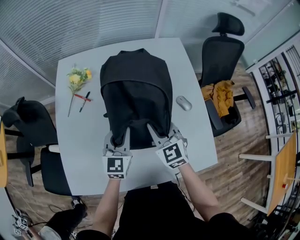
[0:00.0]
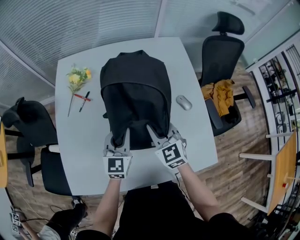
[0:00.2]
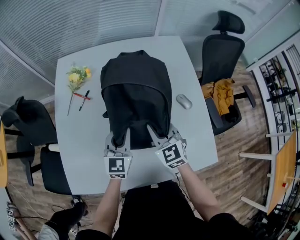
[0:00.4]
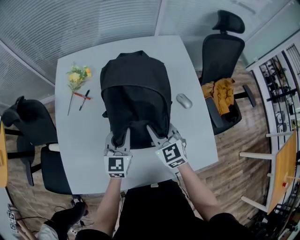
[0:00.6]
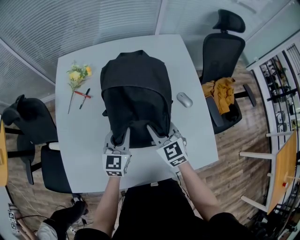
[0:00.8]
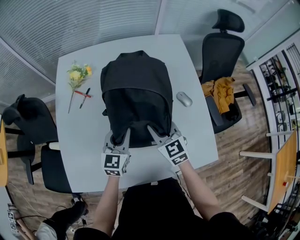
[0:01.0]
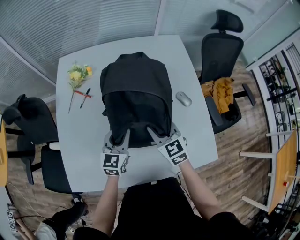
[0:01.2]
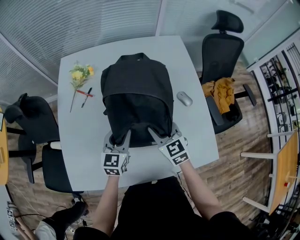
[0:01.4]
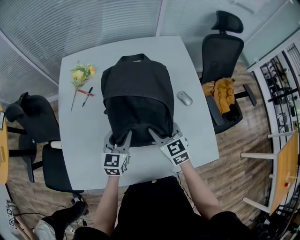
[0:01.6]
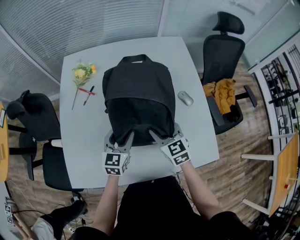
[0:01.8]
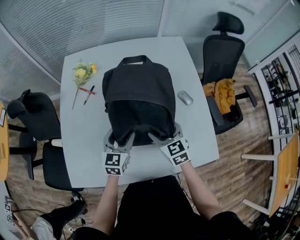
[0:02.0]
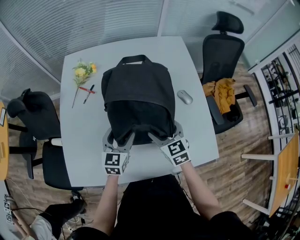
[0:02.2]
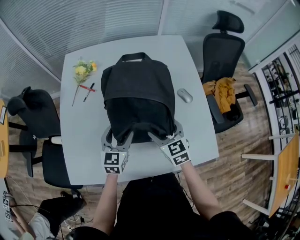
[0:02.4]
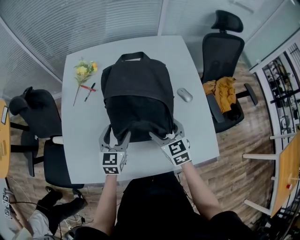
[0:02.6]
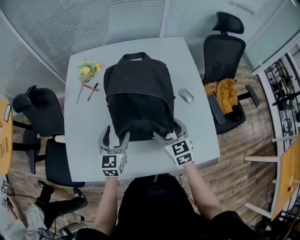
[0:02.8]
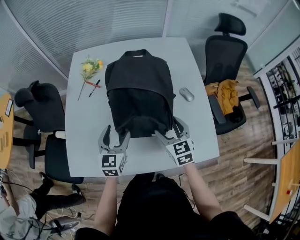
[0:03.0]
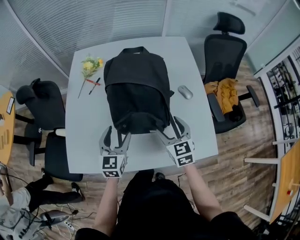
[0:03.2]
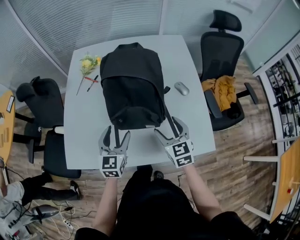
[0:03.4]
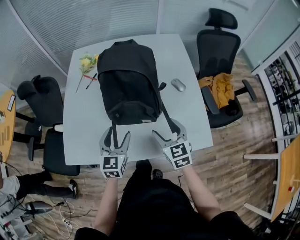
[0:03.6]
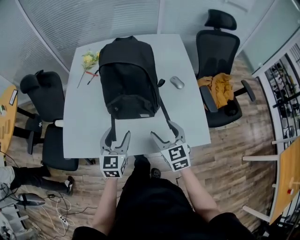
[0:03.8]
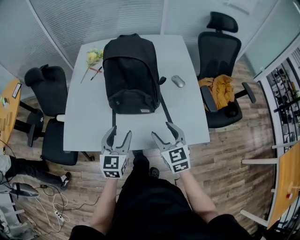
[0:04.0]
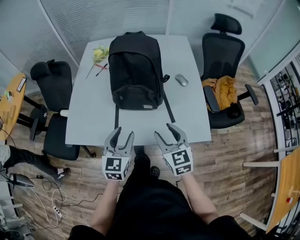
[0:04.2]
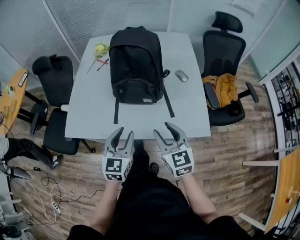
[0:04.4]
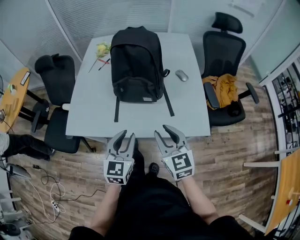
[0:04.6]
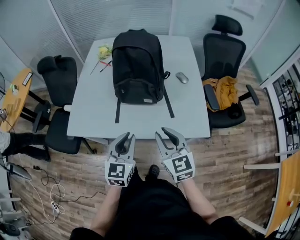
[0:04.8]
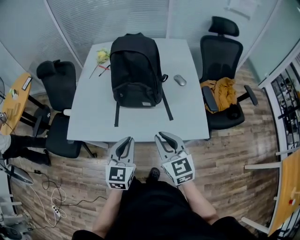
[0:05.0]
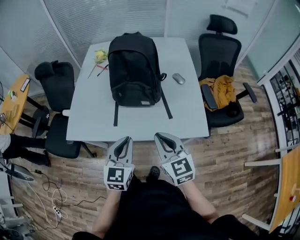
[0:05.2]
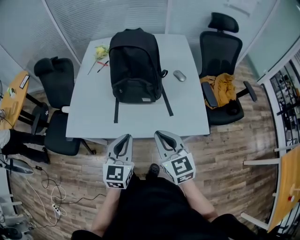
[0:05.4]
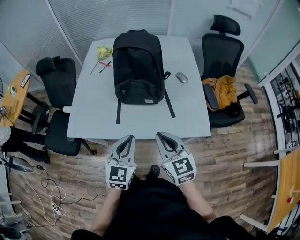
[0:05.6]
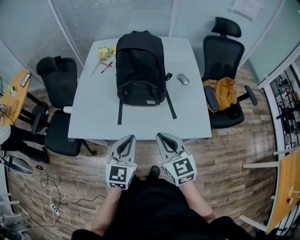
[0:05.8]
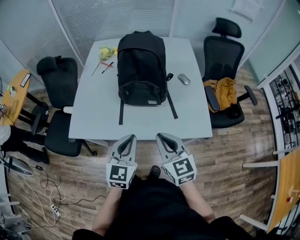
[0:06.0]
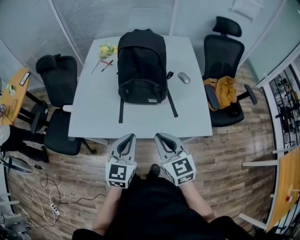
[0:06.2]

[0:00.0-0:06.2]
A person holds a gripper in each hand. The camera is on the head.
0:00.0 to 0:01.6: The right gripper ends up some 5 cm from where it was, and opens. The left gripper moves roughly 5 cm, and opens its fingers.
0:01.6 to 0:03.2: The two grippers go about 10 cm backward. The left gripper opens up; the right gripper opens up.
0:03.2 to 0:04.6: The grippers both shift backward by some 25 cm. The left gripper closes up. The right gripper closes its fingers.
0:04.6 to 0:06.2: The right gripper is displaced to the left by about 5 cm.

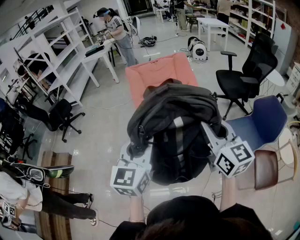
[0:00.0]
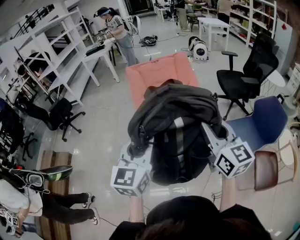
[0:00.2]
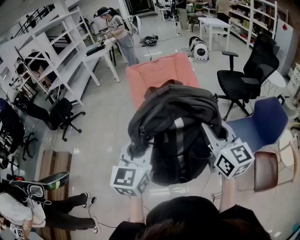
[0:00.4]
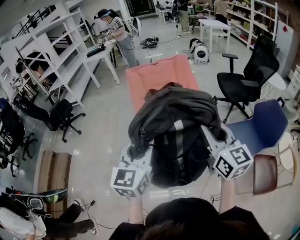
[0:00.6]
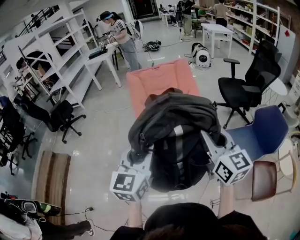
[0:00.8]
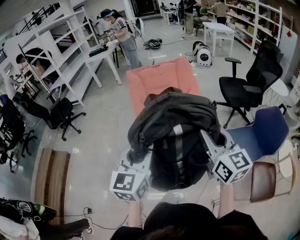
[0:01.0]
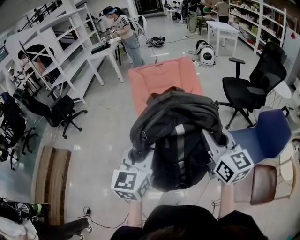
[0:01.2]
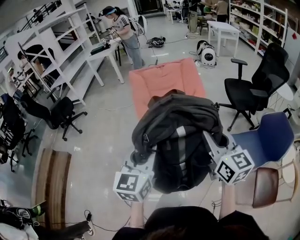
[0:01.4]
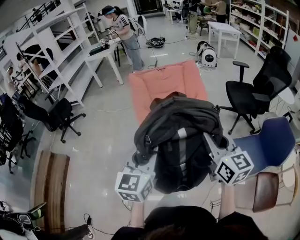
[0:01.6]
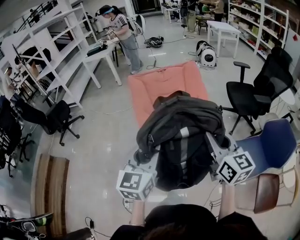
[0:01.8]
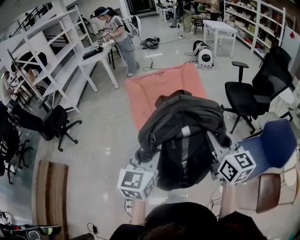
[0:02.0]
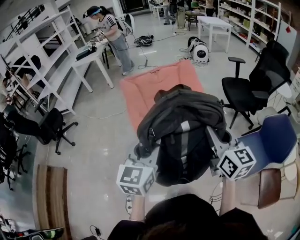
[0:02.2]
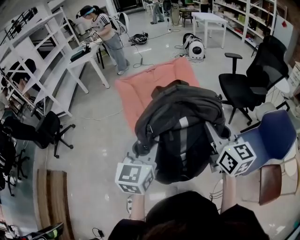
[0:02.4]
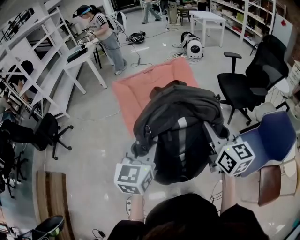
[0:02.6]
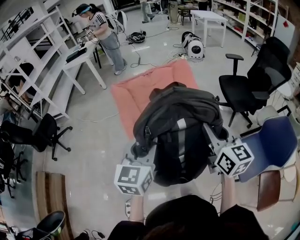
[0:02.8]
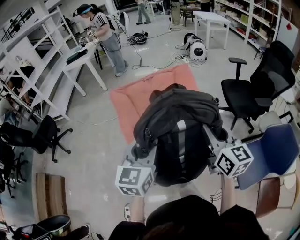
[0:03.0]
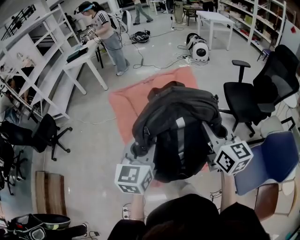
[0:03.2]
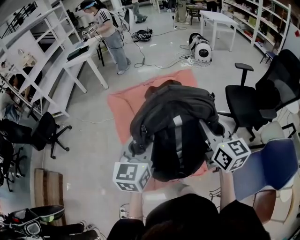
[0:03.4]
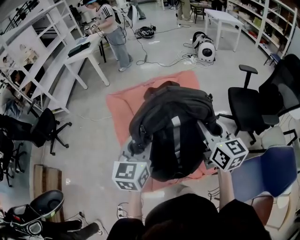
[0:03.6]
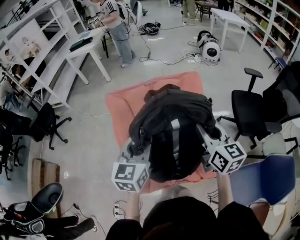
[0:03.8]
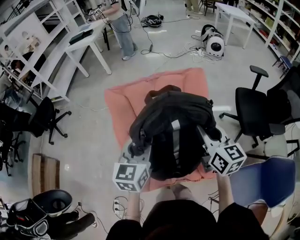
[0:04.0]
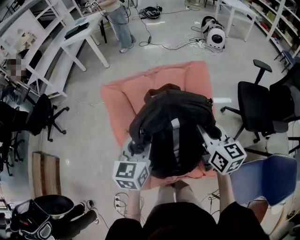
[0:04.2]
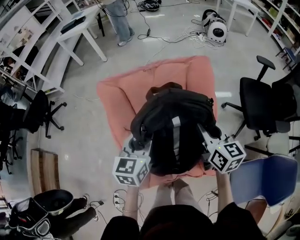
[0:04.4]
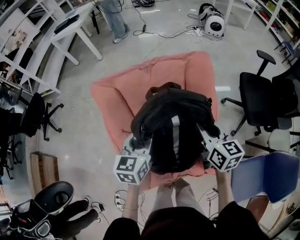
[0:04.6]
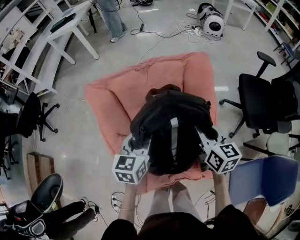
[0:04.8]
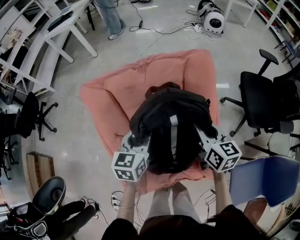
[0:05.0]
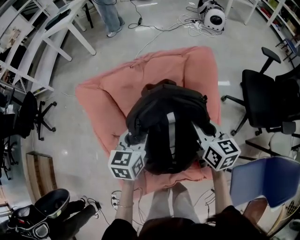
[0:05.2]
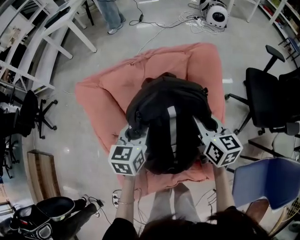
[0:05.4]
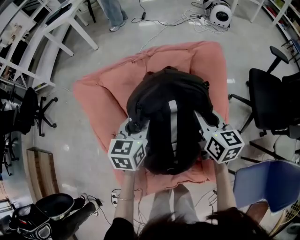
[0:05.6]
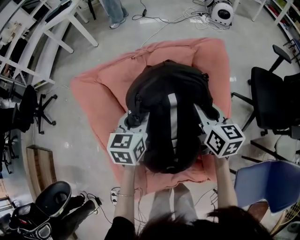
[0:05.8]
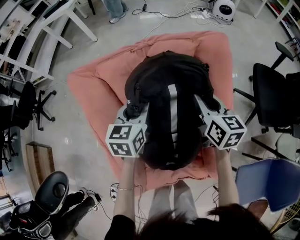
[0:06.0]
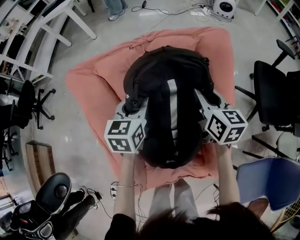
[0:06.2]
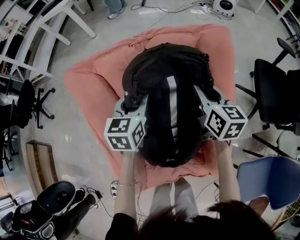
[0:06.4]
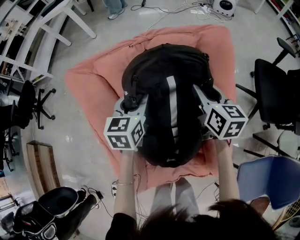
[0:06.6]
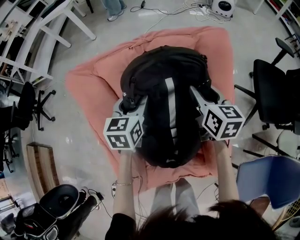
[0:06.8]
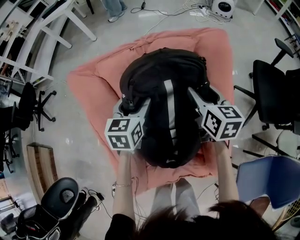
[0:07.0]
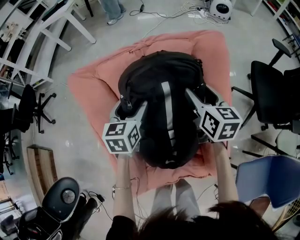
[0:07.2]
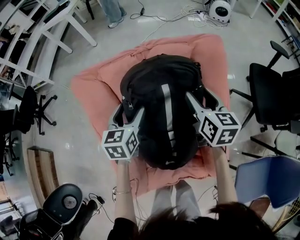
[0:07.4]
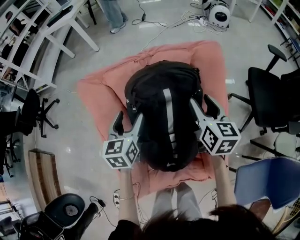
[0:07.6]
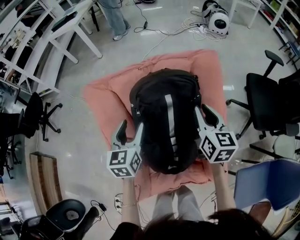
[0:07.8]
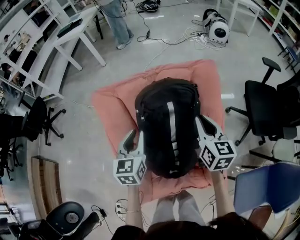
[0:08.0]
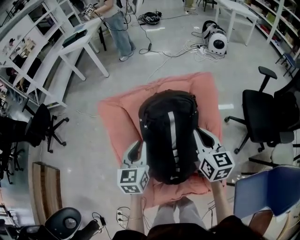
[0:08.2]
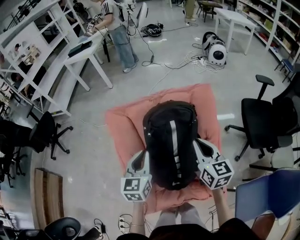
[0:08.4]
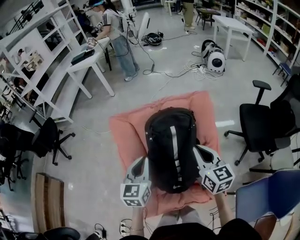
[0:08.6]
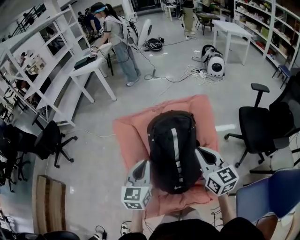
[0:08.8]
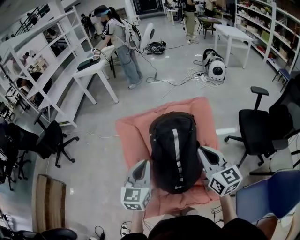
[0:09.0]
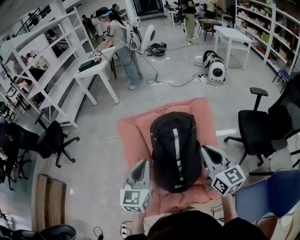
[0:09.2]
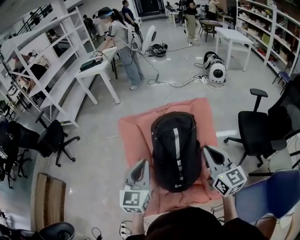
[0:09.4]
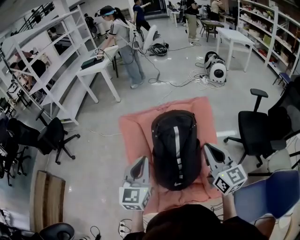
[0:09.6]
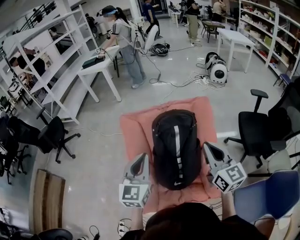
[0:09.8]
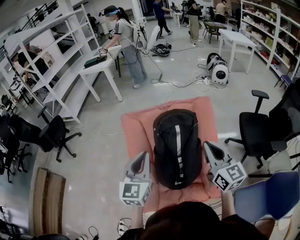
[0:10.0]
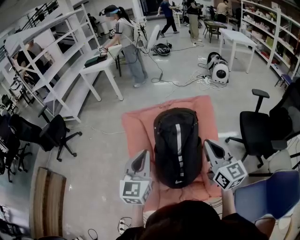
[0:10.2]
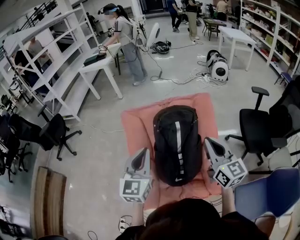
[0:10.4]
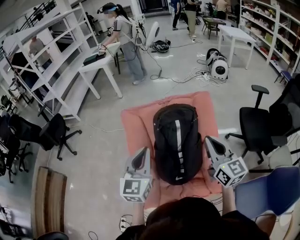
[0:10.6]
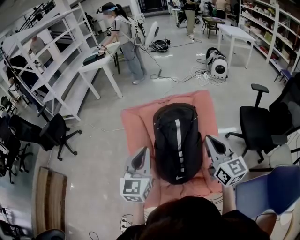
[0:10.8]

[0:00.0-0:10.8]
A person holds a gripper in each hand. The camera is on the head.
0:00.0 to 0:01.6: Both grippers travel together forward, about 15 cm.
0:01.6 to 0:03.0: Both grippers travel together forward, roughly 25 cm.
0:03.0 to 0:04.6: Both grippers move forward and downward, roughly 30 cm.
0:04.6 to 0:06.2: Both grippers travel together forward and downward, roughly 20 cm.
0:06.2 to 0:07.8: The left gripper moves backward, upward and to the left, about 10 cm, and opens. Meanwhile the right gripper travels upward and backward by about 10 cm, and opens, then closes once more.
0:07.8 to 0:09.2: Both grippers move upward and backward, approximately 25 cm. The right gripper swivels some 20 degrees. The left gripper closes up.
0:09.2 to 0:10.8: There are only small adjustments of the grippers.

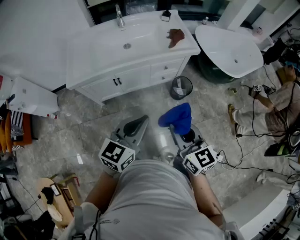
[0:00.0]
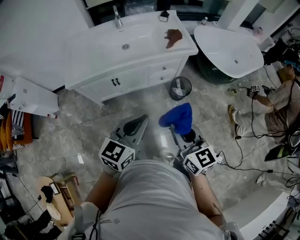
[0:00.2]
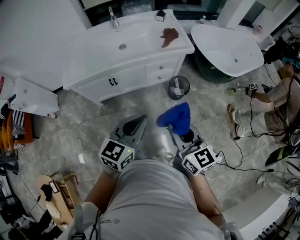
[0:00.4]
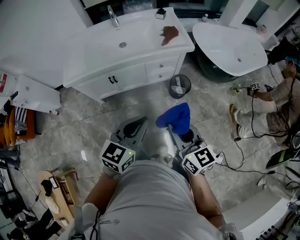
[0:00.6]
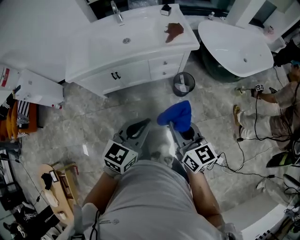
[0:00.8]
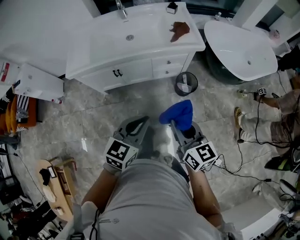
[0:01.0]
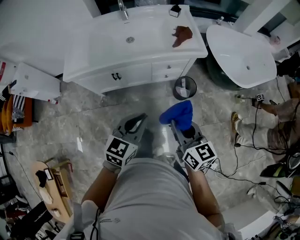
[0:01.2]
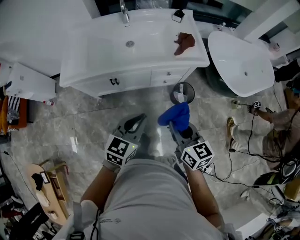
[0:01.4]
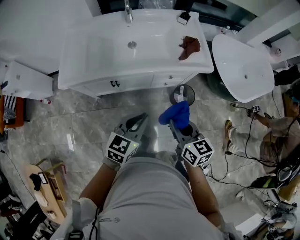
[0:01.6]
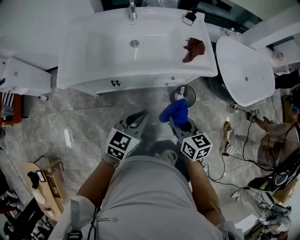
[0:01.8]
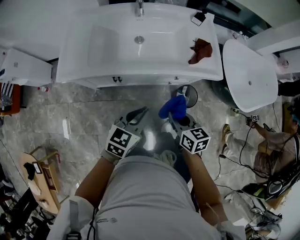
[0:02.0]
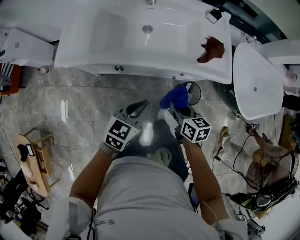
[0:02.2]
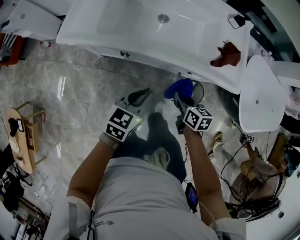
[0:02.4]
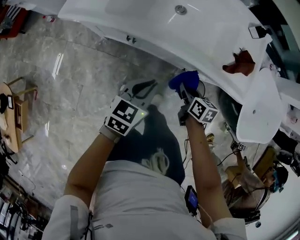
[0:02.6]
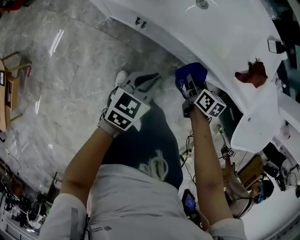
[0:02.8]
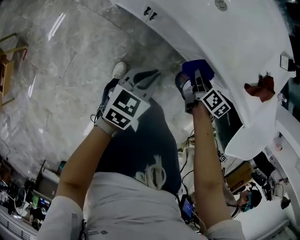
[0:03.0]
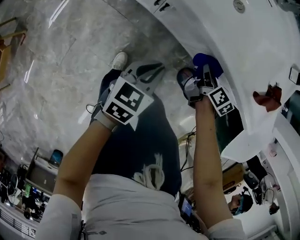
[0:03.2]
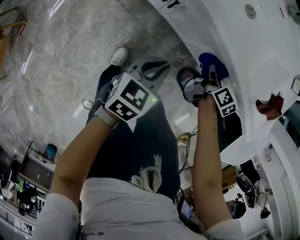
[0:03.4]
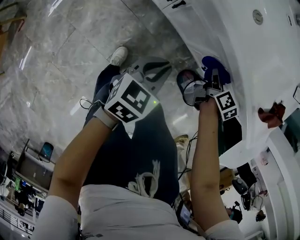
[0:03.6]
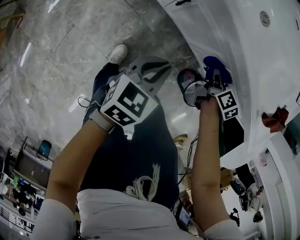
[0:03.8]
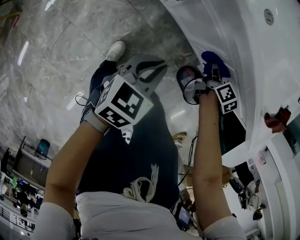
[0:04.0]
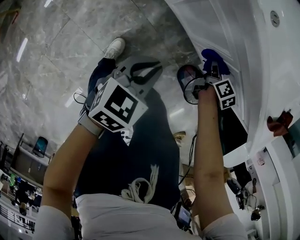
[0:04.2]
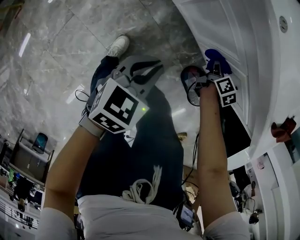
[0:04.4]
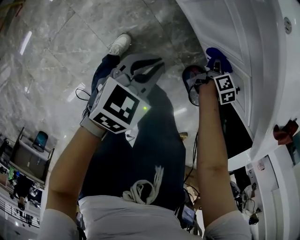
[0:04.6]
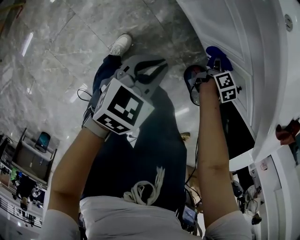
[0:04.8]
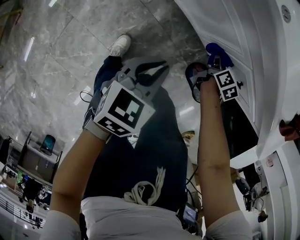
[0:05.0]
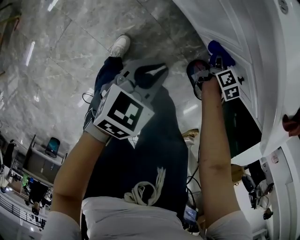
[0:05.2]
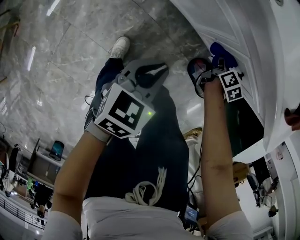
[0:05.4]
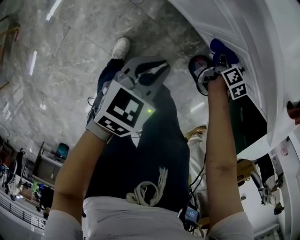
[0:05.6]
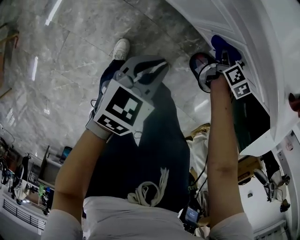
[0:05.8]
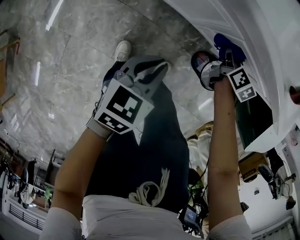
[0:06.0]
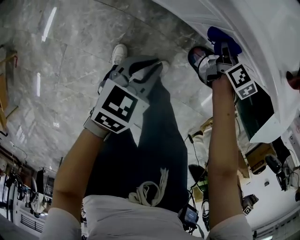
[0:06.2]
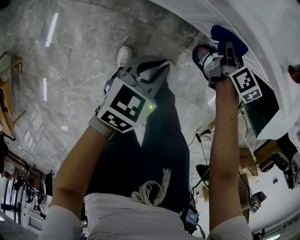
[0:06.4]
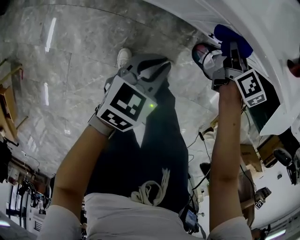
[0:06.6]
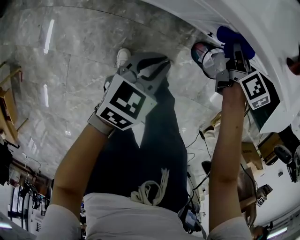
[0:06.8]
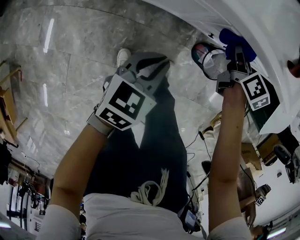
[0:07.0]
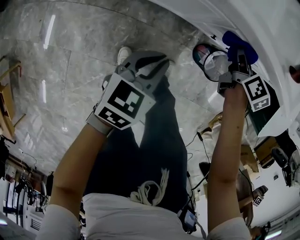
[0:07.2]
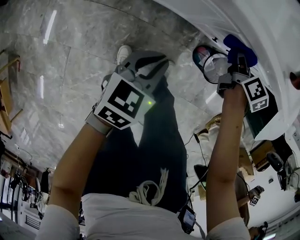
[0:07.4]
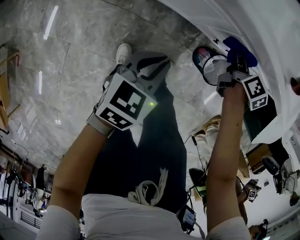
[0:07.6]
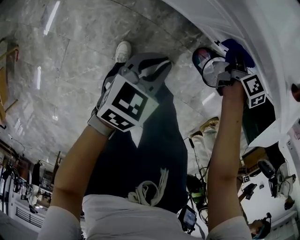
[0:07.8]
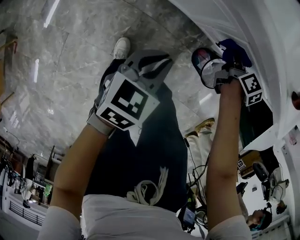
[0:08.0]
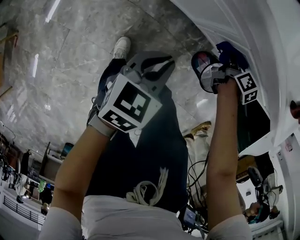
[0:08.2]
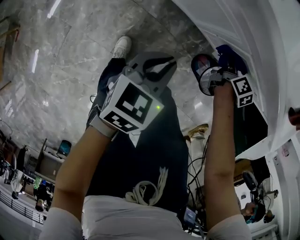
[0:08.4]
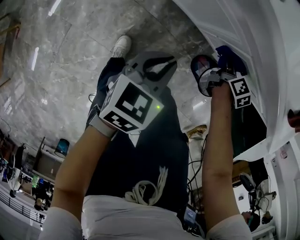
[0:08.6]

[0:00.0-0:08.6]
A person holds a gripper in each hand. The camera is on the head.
0:00.0 to 0:01.4: Both grippers move forward and downward, roughly 15 cm.
0:01.4 to 0:02.8: The left gripper is displaced downward and forward by some 25 cm, and turns by approximately 30 degrees. The right gripper moves downward and forward, roughly 40 cm, and swivels roughly 40 degrees.
0:02.8 to 0:04.4: The grippers both shift downward by approximately 20 cm.
0:04.4 to 0:05.8: The left gripper shifts by about 5 cm. Meanwhile the right gripper moves roughly 5 cm.
0:05.8 to 0:07.2: The right gripper goes approximately 10 cm upward.
0:07.2 to 0:08.6: The right gripper travels downward by some 15 cm.
